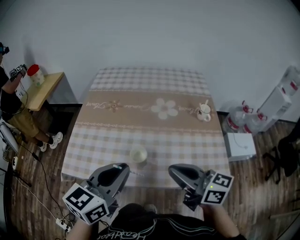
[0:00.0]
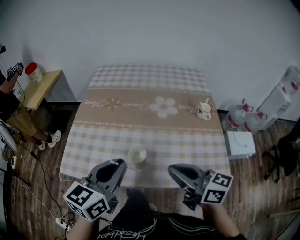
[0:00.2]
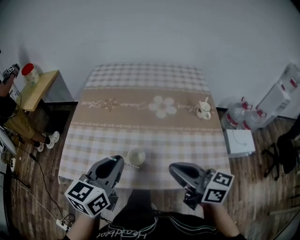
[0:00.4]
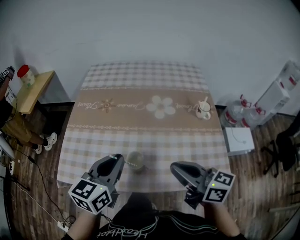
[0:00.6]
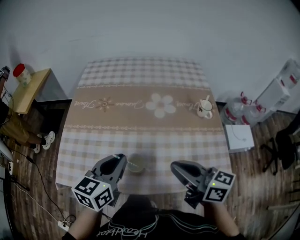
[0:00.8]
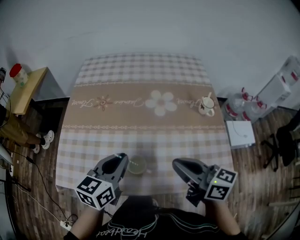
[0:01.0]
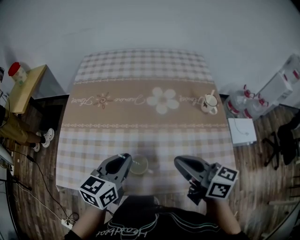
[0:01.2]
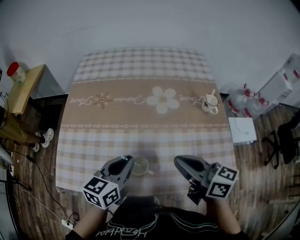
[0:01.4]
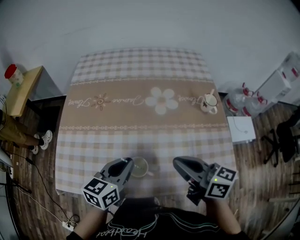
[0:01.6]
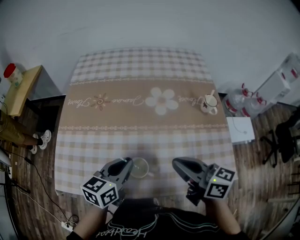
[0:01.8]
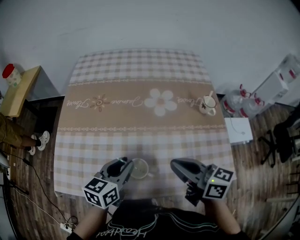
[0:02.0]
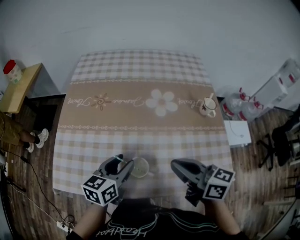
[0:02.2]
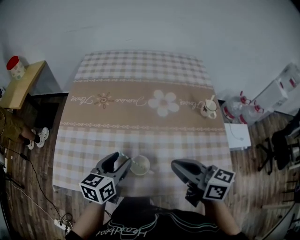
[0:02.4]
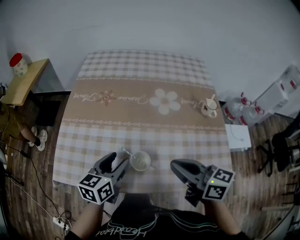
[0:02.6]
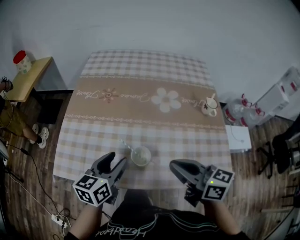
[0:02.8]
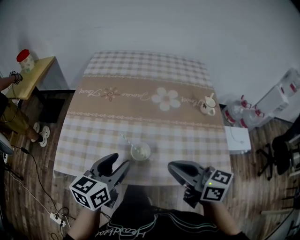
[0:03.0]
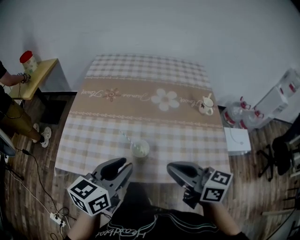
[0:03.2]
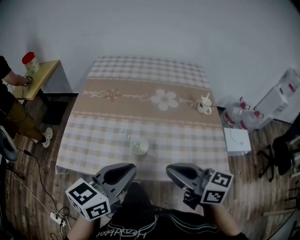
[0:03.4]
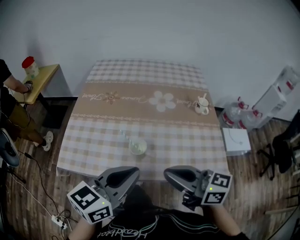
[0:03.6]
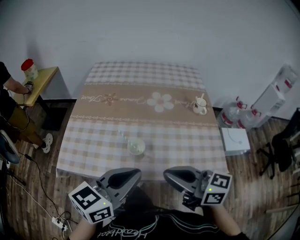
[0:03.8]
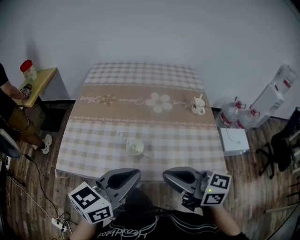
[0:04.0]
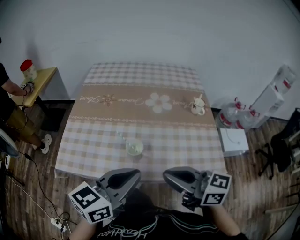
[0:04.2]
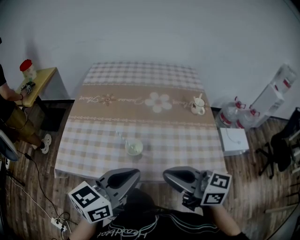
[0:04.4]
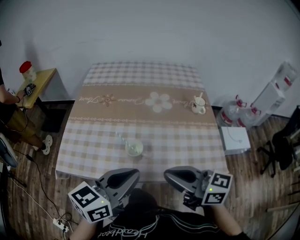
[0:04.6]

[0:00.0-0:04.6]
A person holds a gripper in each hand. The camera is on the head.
0:00.0 to 0:01.6: The left gripper travels downward and forward by some 20 cm. Meanwhile the right gripper travels forward and downward by roughly 15 cm.
0:01.6 to 0:03.0: The right gripper shifts about 10 cm backward. Meanwhile the left gripper moves backward and to the left, about 10 cm, and opens up.
0:03.0 to 0:04.6: The right gripper goes some 5 cm backward, while the left gripper heads backward, upward and to the right, covering roughly 15 cm, and closes.

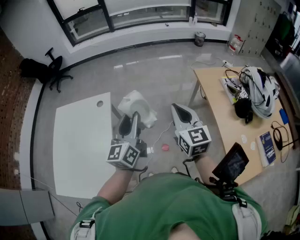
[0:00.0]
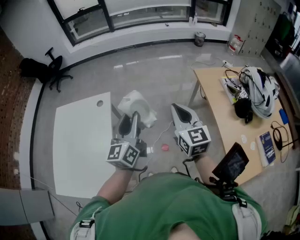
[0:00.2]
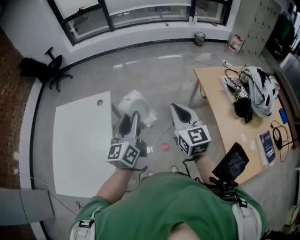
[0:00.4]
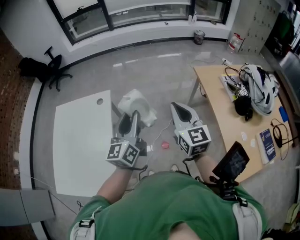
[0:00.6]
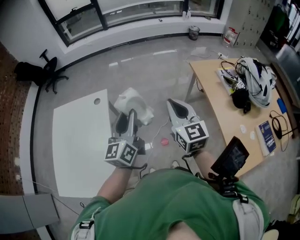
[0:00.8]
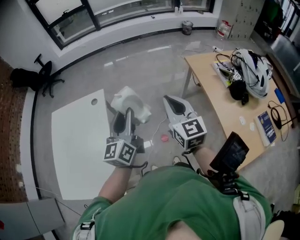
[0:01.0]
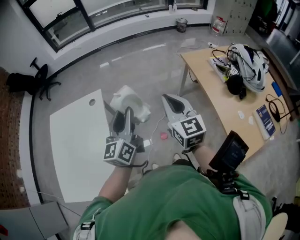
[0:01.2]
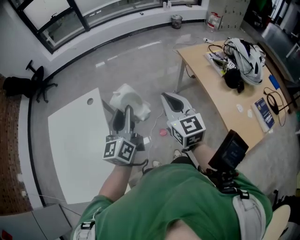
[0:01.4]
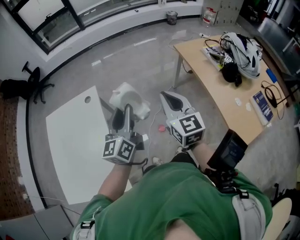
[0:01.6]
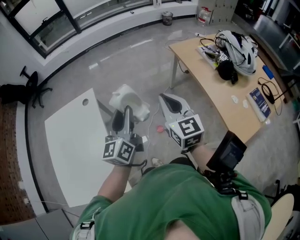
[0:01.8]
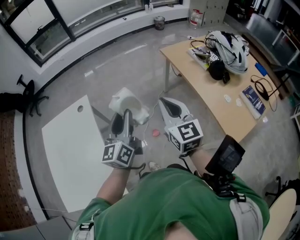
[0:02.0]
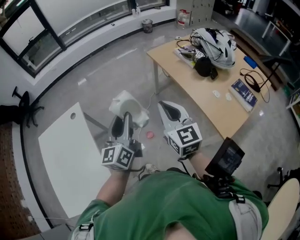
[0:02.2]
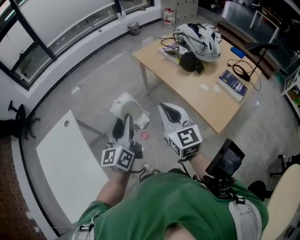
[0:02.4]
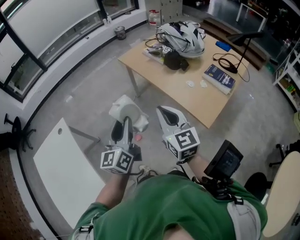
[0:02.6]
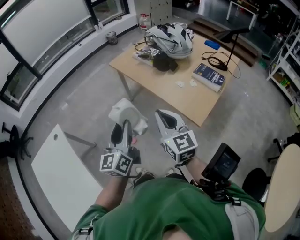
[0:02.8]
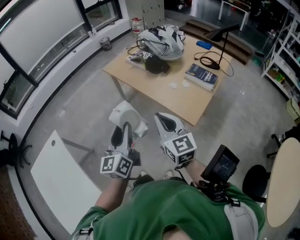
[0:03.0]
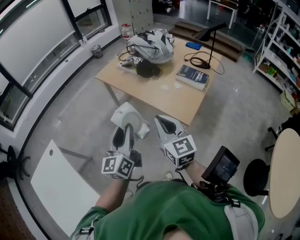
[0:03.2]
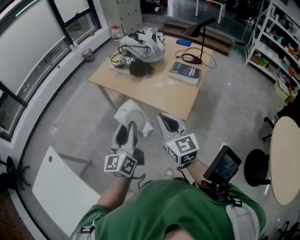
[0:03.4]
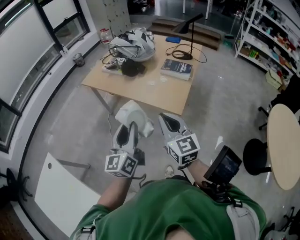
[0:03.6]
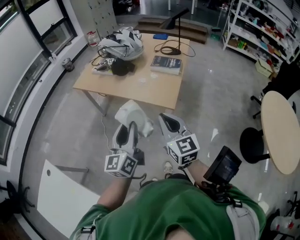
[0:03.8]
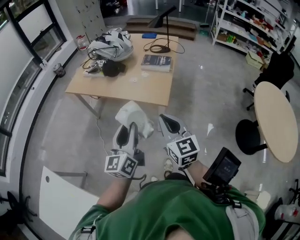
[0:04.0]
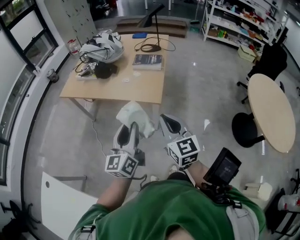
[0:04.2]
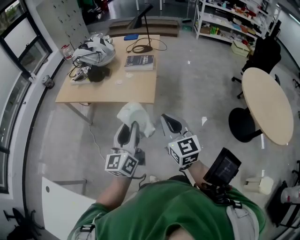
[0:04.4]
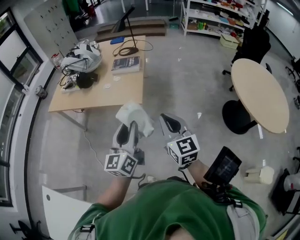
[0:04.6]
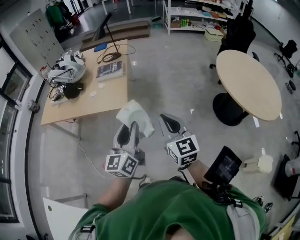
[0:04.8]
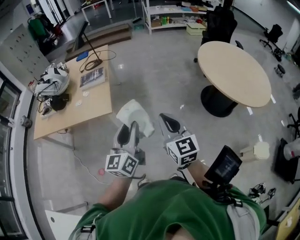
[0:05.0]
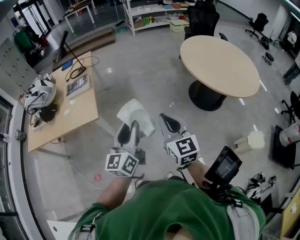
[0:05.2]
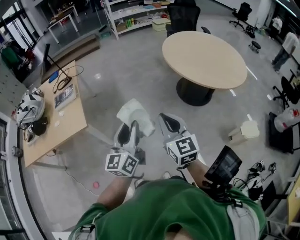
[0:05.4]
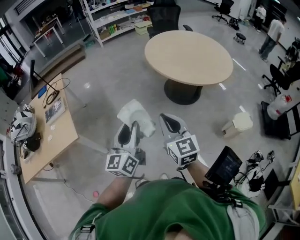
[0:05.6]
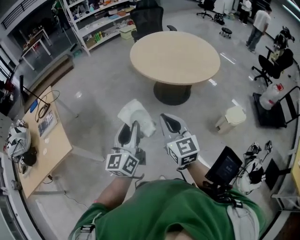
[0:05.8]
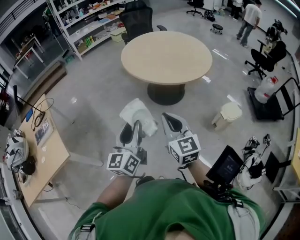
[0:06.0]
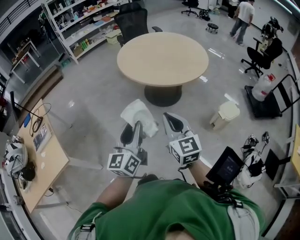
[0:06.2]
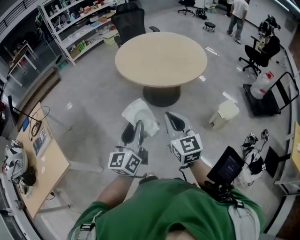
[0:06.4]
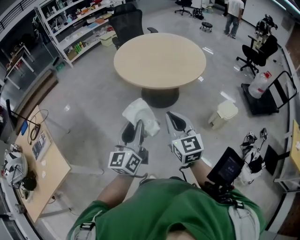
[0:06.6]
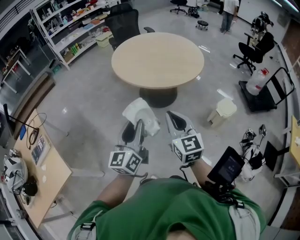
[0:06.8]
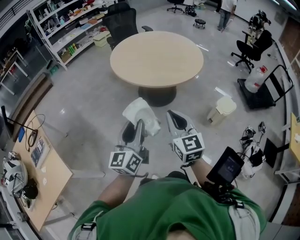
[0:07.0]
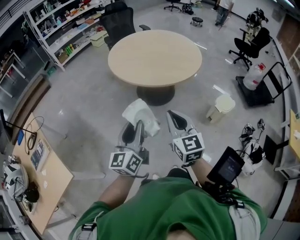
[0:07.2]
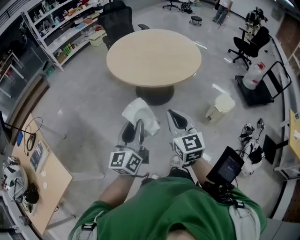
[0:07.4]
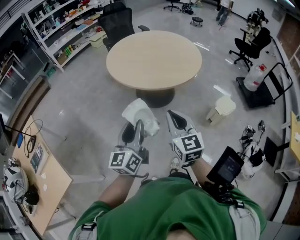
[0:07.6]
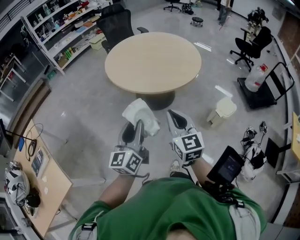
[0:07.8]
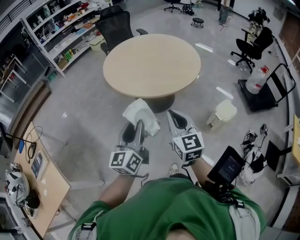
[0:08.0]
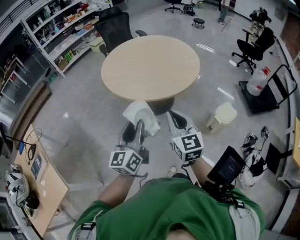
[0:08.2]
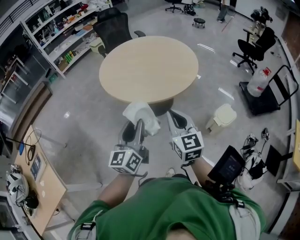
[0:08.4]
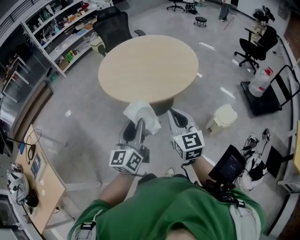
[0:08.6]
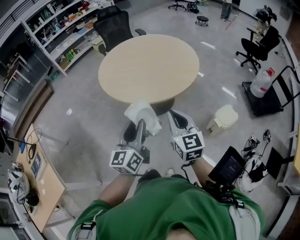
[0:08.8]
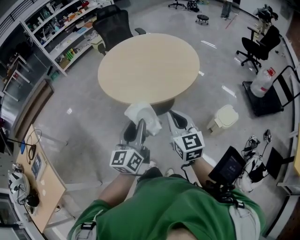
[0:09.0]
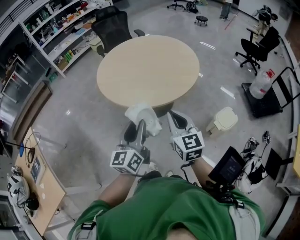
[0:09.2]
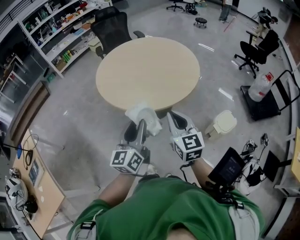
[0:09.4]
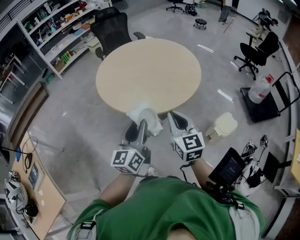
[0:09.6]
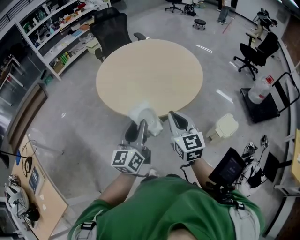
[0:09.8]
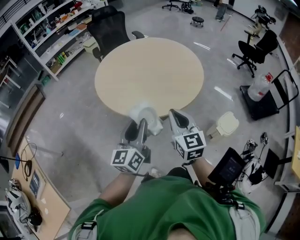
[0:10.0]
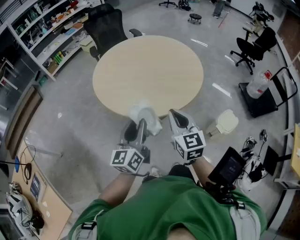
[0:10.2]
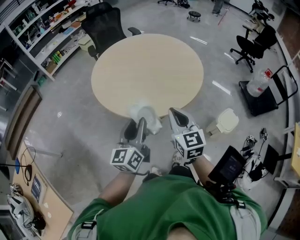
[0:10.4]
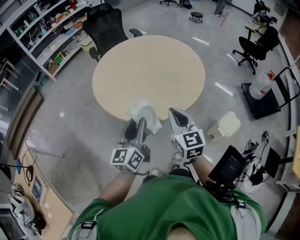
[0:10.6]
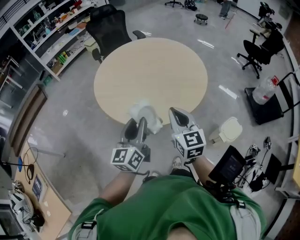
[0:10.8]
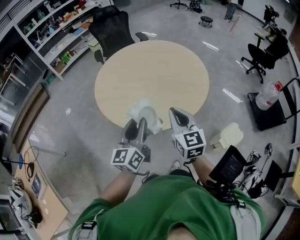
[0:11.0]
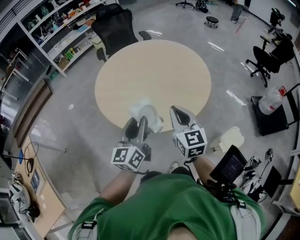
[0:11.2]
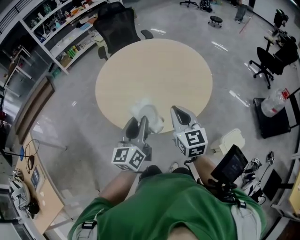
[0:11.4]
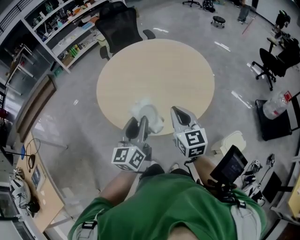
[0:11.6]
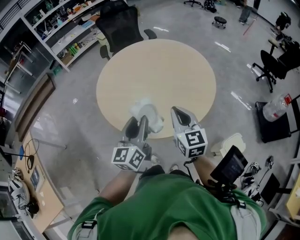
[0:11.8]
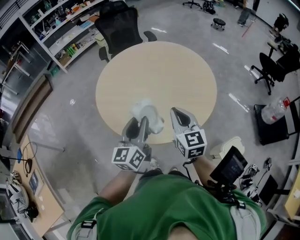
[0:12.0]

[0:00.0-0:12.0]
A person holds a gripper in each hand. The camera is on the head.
0:00.0 to 0:01.6: The right gripper is displaced backward by about 5 cm.
0:01.6 to 0:03.0: The left gripper moves approximately 35 cm, and rotates about 30 degrees; the right gripper moves some 35 cm, and swivels about 30 degrees.
0:03.0 to 0:04.4: The left gripper ends up some 15 cm from where it was, and turns by some 40 degrees. Meanwhile the right gripper shifts by some 20 cm, and swivels approximately 40 degrees.
0:04.4 to 0:06.0: The two grippers travel together, roughly 50 cm. The right gripper changes its angle by some 50 degrees, while the left gripper swivels approximately 50 degrees.
0:06.0 to 0:07.6: The two grippers go about 10 cm forward.
0:07.6 to 0:09.0: Both grippers travel together to the right and forward, approximately 20 cm.
0:09.0 to 0:10.4: The grippers both shift forward by roughly 15 cm.
0:10.4 to 0:12.0: The grippers both shift forward by some 15 cm.

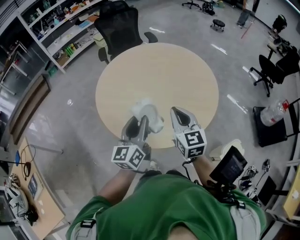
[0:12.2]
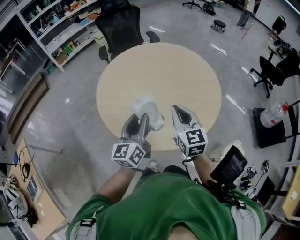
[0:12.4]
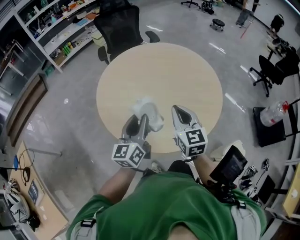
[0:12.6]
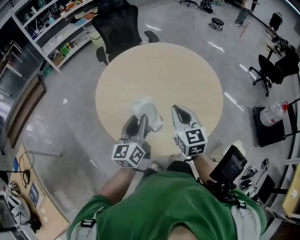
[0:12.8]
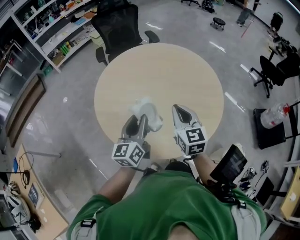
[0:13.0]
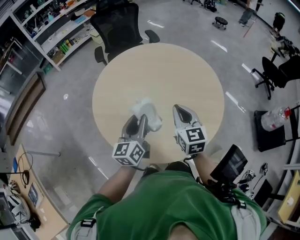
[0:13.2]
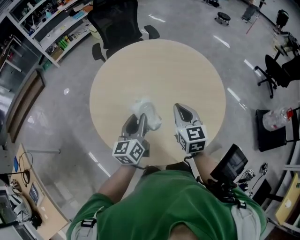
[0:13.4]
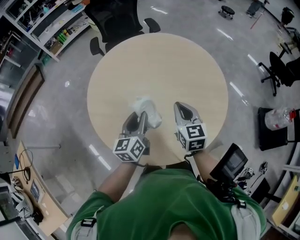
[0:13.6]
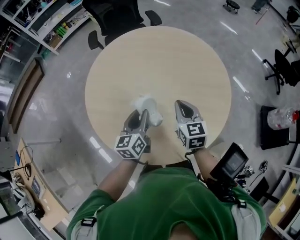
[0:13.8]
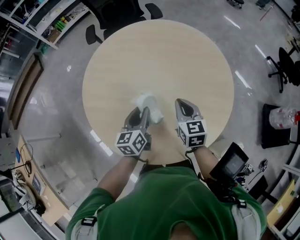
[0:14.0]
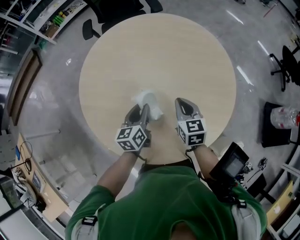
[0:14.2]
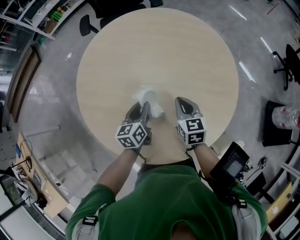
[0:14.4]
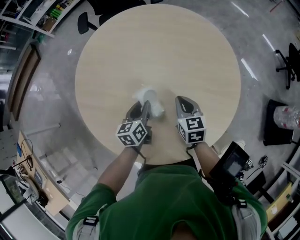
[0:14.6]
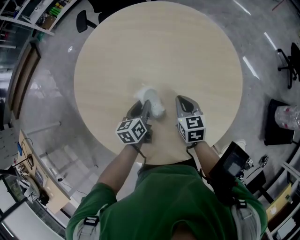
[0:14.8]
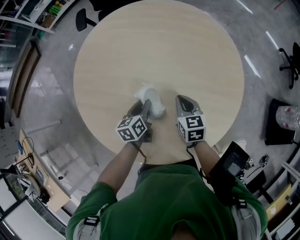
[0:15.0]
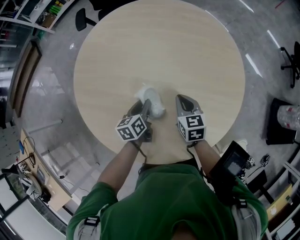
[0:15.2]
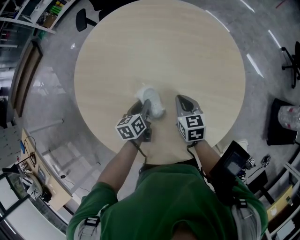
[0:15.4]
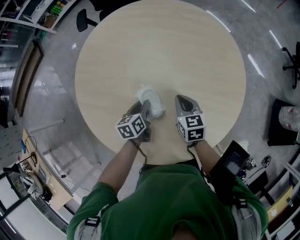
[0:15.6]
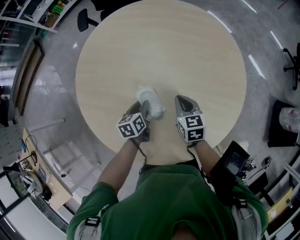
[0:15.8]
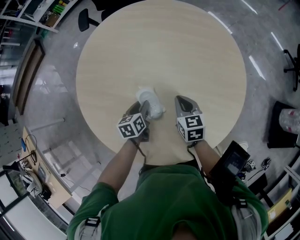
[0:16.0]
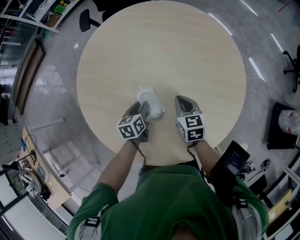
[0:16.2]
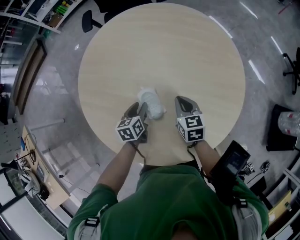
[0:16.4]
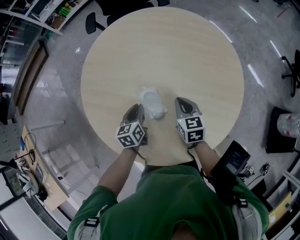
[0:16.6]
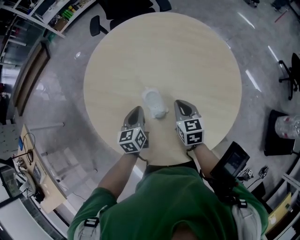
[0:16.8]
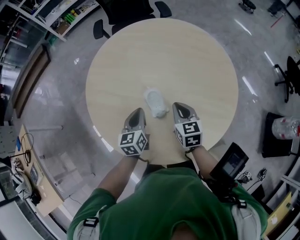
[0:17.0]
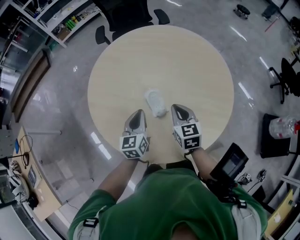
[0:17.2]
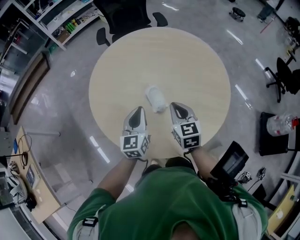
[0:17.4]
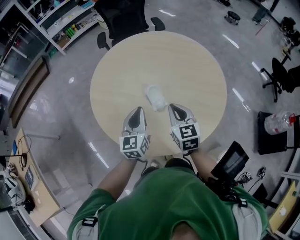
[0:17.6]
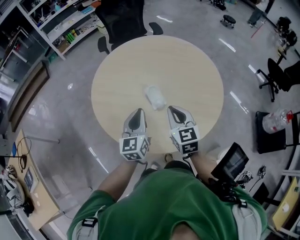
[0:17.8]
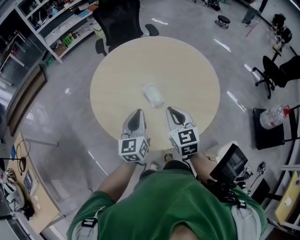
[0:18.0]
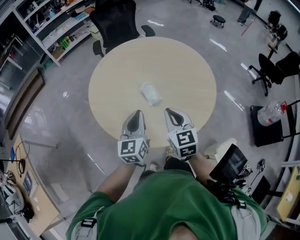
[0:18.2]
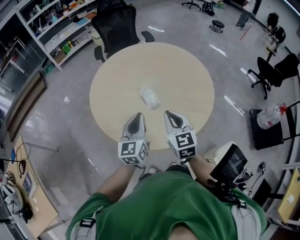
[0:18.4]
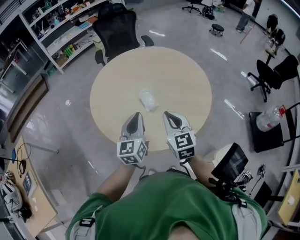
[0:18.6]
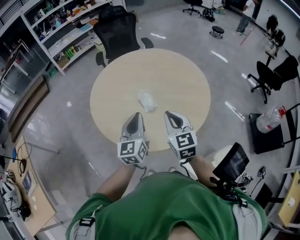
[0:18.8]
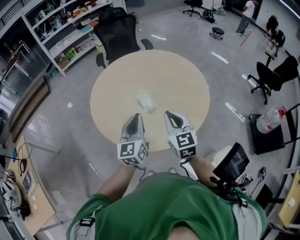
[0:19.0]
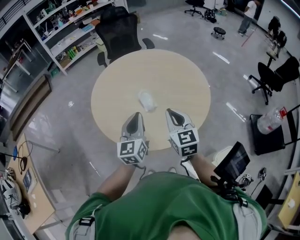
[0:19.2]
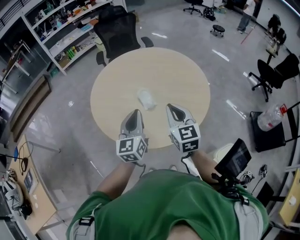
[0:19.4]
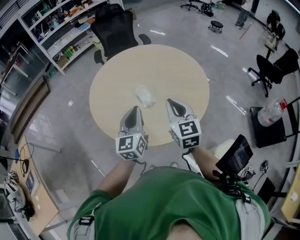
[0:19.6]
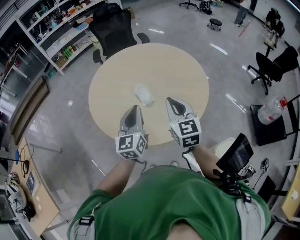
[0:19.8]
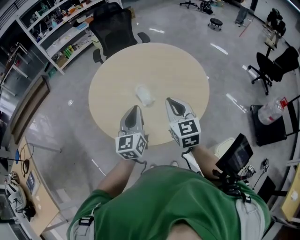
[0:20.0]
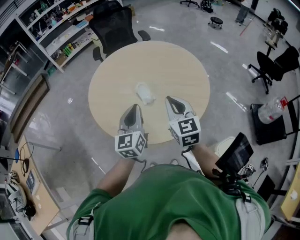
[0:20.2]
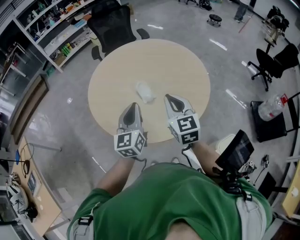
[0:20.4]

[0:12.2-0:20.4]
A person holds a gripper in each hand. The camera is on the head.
0:12.2 to 0:13.8: Both grippers travel together forward and downward, roughly 25 cm.
0:13.8 to 0:15.4: The two grippers go roughly 15 cm downward. The left gripper rotates roughly 30 degrees.
0:15.4 to 0:17.2: The left gripper shifts some 15 cm upward and backward, swivels some 30 degrees, and closes. The right gripper moves upward, backward and to the left, approximately 15 cm.
0:17.2 to 0:18.8: The grippers both shift backward and upward by approximately 20 cm.
0:18.8 to 0:20.4: The grippers move only a little.
